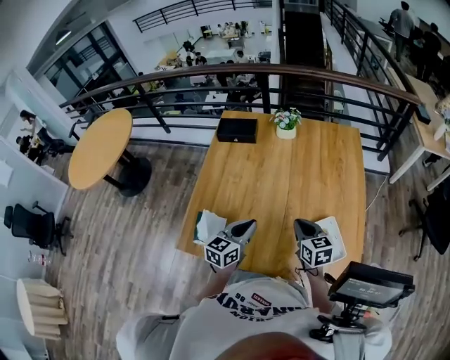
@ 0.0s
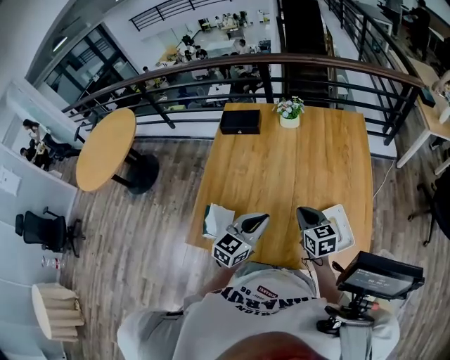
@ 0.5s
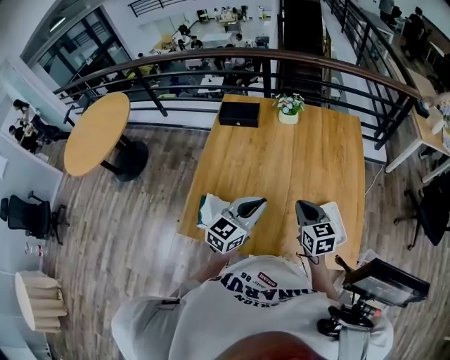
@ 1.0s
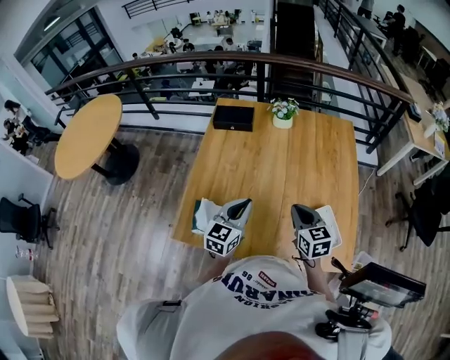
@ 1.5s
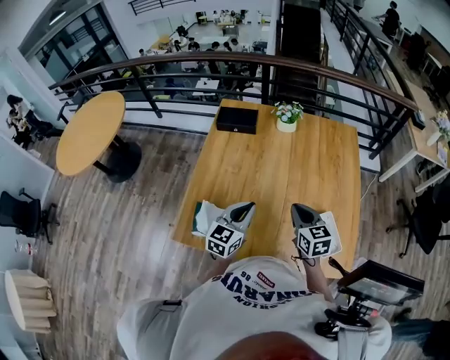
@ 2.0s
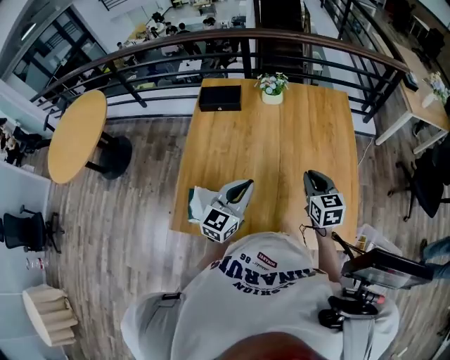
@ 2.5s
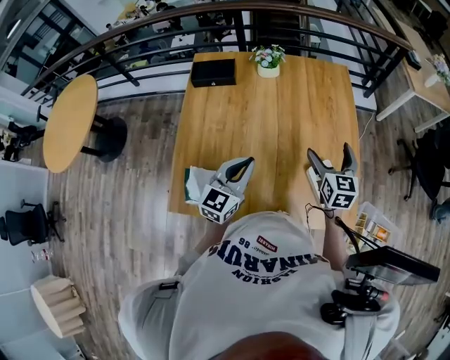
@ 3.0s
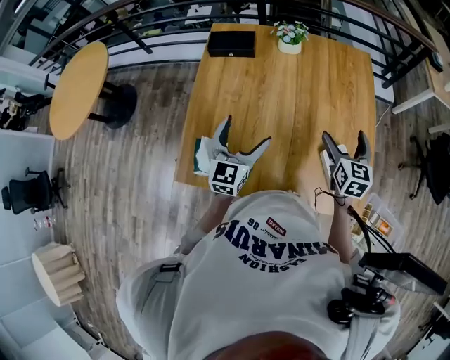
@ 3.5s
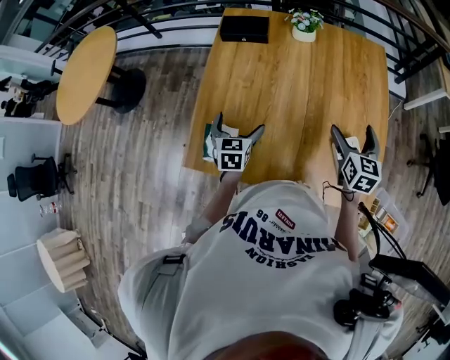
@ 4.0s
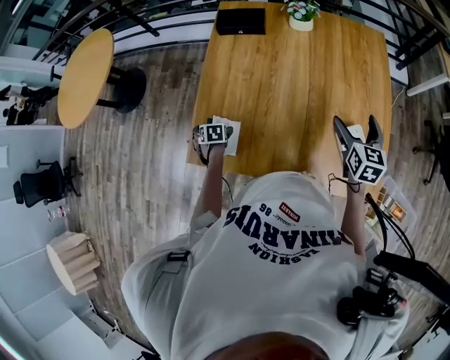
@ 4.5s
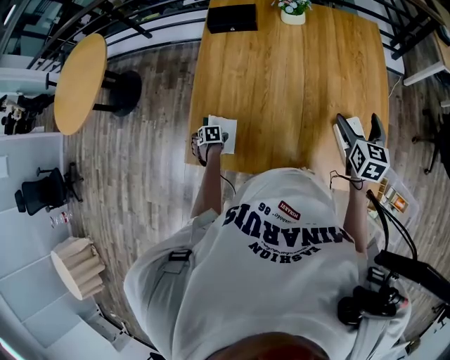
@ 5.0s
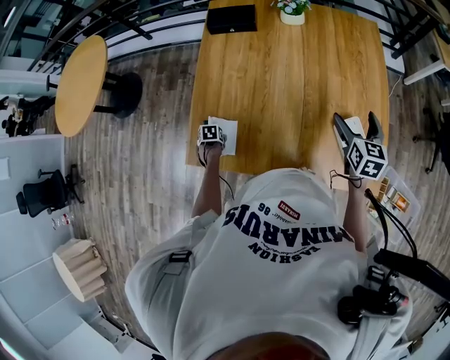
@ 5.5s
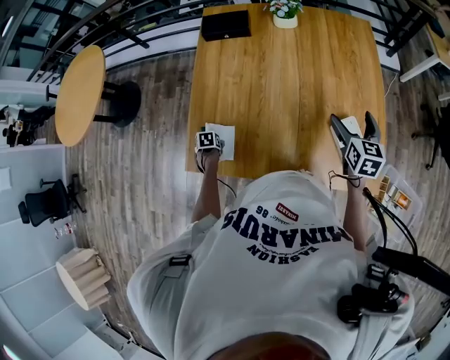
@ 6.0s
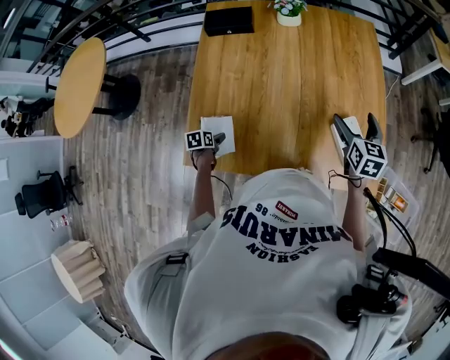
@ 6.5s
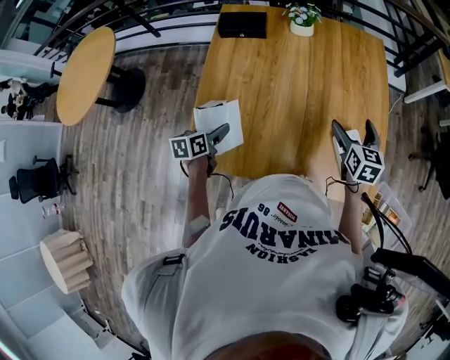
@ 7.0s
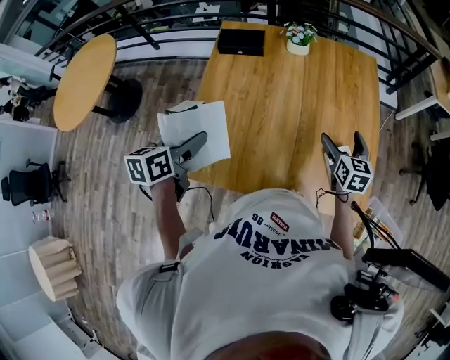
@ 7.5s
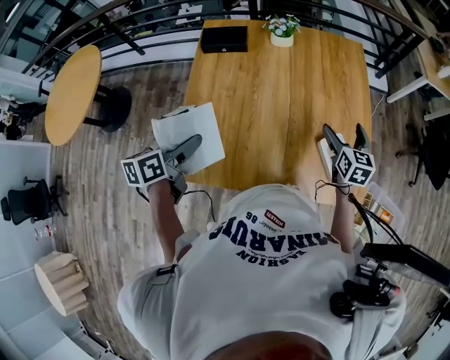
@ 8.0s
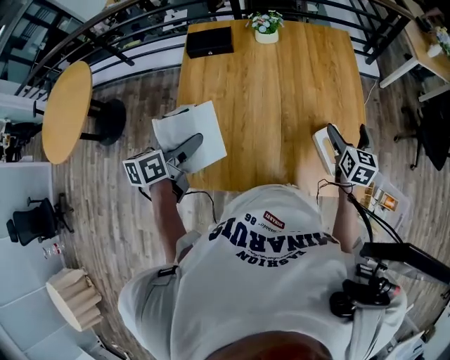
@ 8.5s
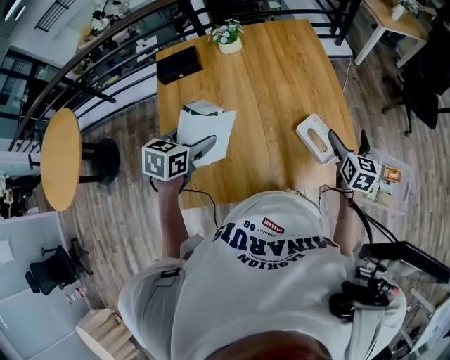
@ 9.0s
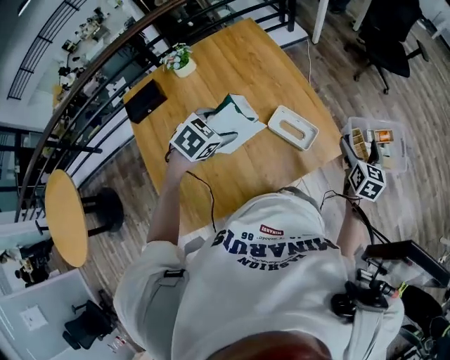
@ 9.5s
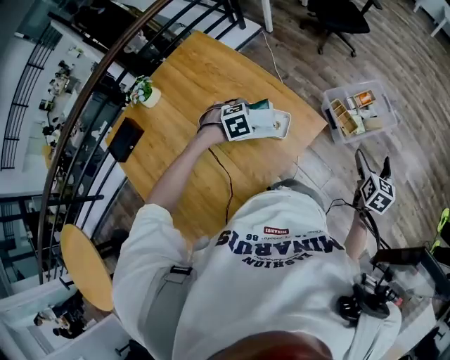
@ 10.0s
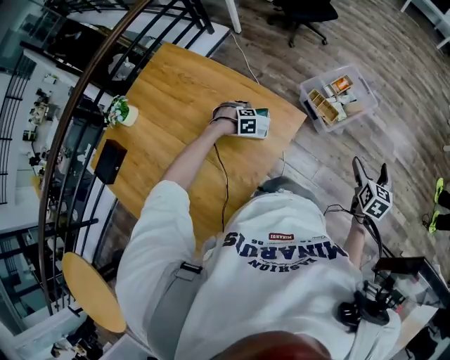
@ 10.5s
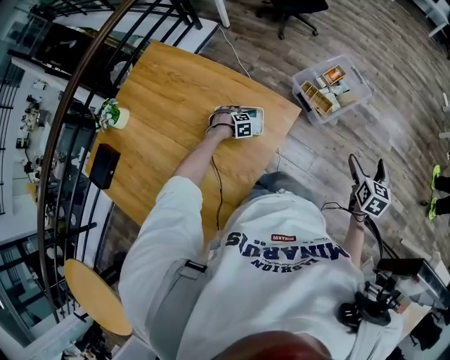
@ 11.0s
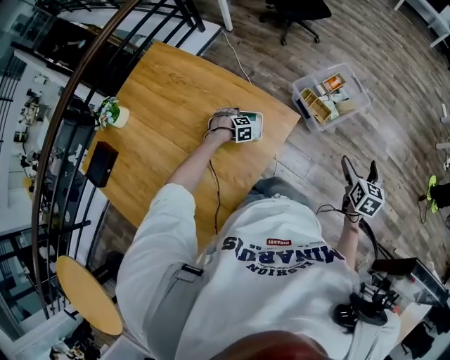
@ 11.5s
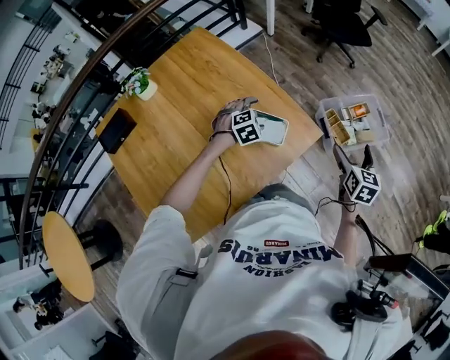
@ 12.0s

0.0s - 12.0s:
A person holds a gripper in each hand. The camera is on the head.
0.0s - 2.0s: The right gripper travels upward by approximately 5 cm.
2.0s - 4.0s: The left gripper shifts some 15 cm downward, to the left and forward, rotates some 30 degrees, and opens its fingers; the right gripper travels to the right and forward by some 15 cm, and opens its fingers.
4.0s - 6.0s: The left gripper heads downward, covering some 25 cm, tilts its fingers roughly 50 degrees downward, and closes.
6.0s - 8.0s: The left gripper goes some 40 cm upward, and points its fingers about 50 degrees further upward.
8.0s - 10.0s: The right gripper changes place by some 50 cm, and rotates approximately 70 degrees, while the left gripper ends up approximately 50 cm from where it was, and rotates around the line of its fingers by about 120 degrees, clockwise from behind.
10.0s - 12.0s: The left gripper goes downward and returns, roughly 25 cm each way; the right gripper shifts by some 10 cm.

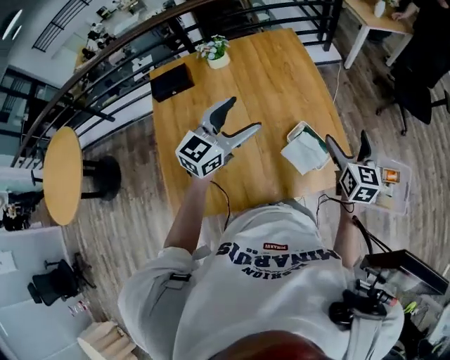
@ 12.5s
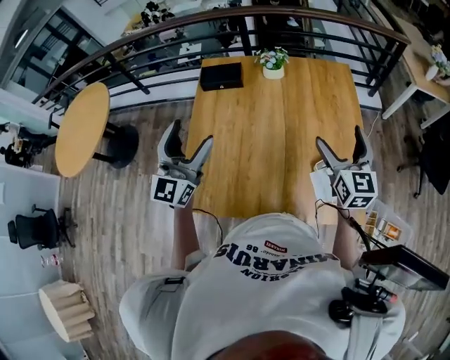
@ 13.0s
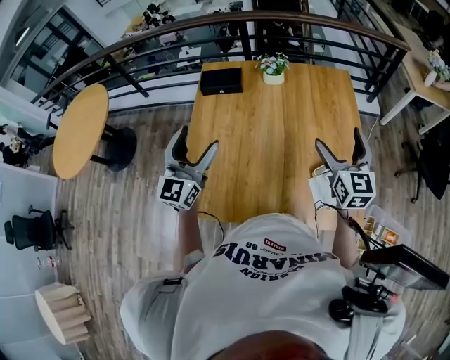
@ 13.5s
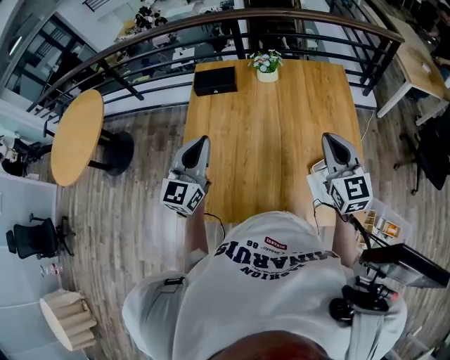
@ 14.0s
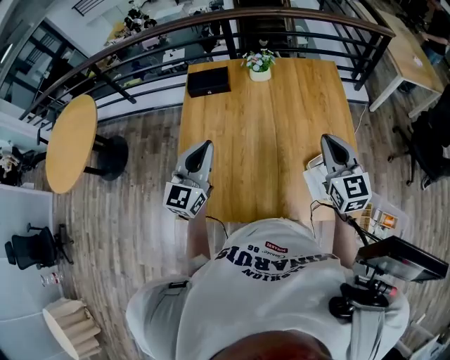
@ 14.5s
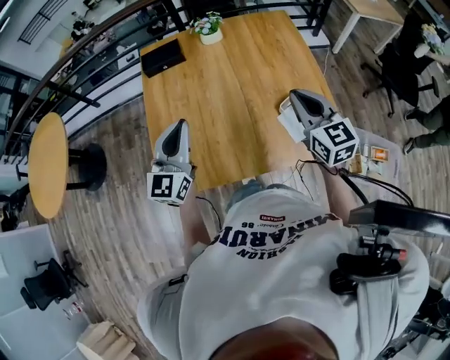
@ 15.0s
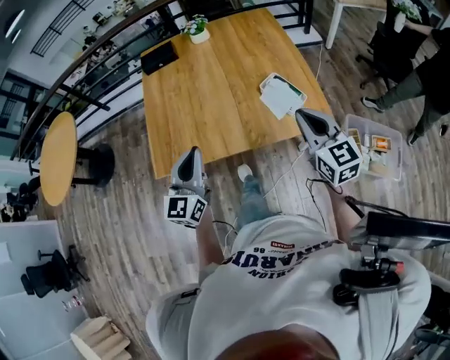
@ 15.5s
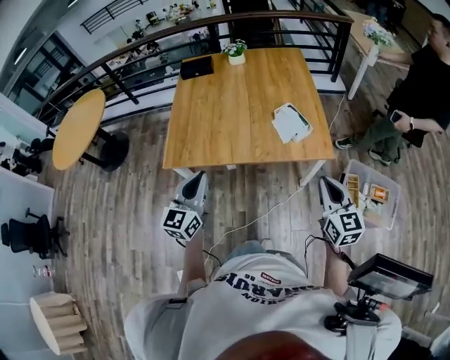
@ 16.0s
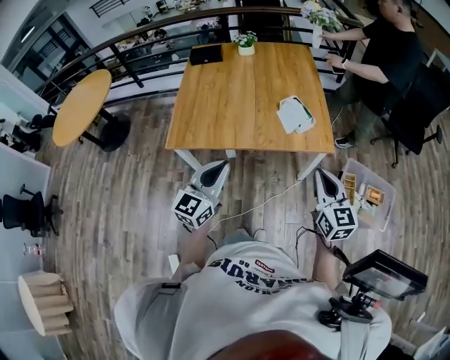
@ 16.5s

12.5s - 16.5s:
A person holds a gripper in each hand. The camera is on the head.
12.5s - 14.5s: The left gripper moves approximately 25 cm, swivels about 30 degrees, and closes. Meanwhile the right gripper changes place by some 25 cm, changes its angle by roughly 30 degrees, and closes up.
14.5s - 16.5s: The two grippers travel together, backward and to the right, approximately 50 cm.

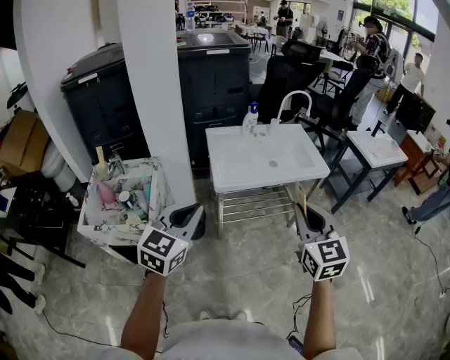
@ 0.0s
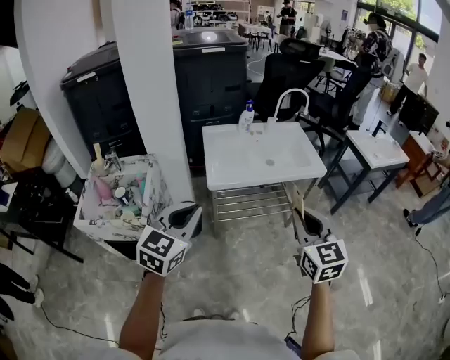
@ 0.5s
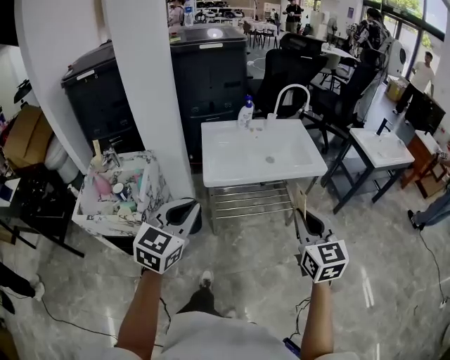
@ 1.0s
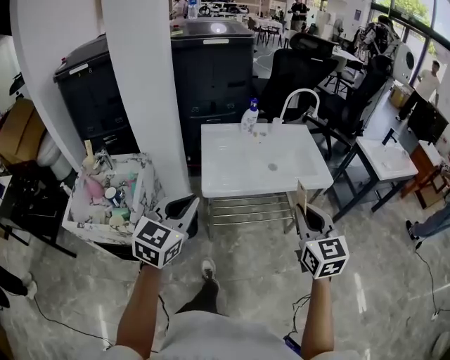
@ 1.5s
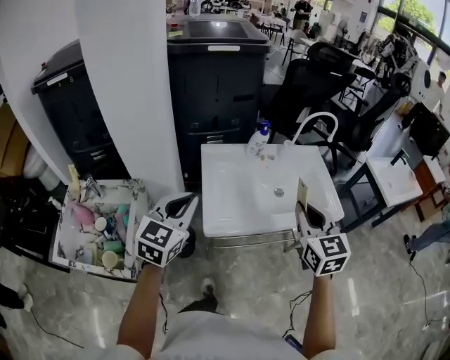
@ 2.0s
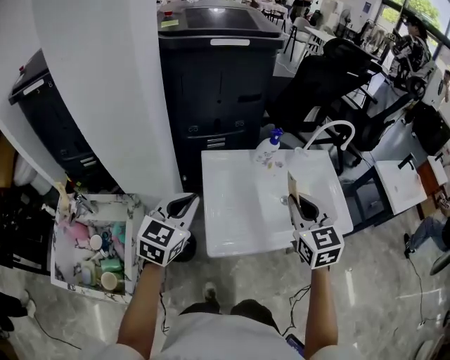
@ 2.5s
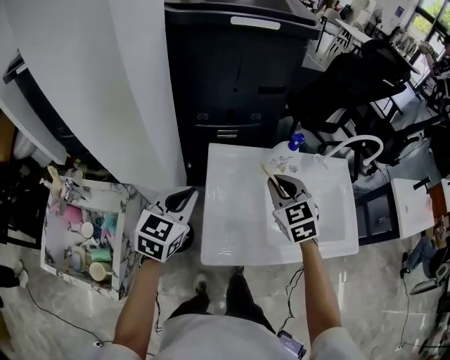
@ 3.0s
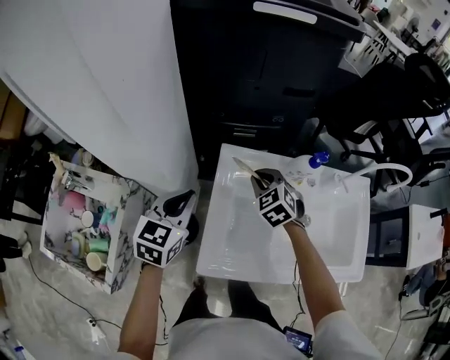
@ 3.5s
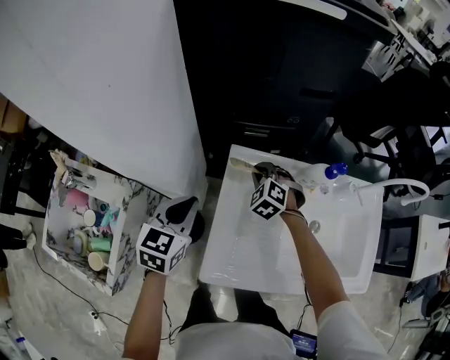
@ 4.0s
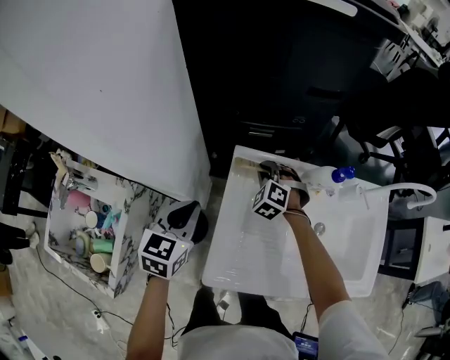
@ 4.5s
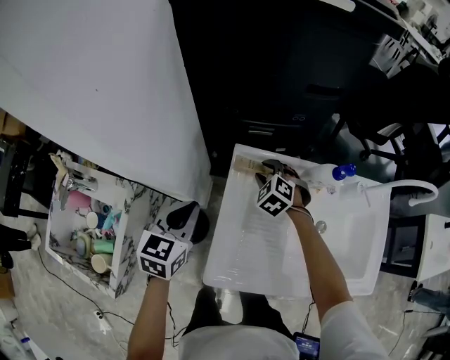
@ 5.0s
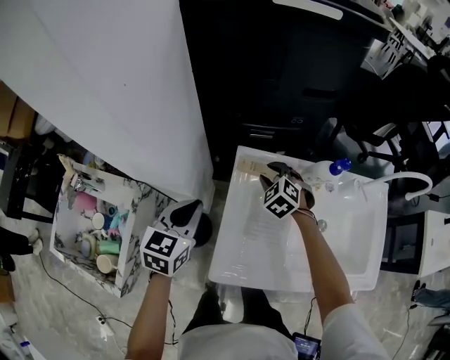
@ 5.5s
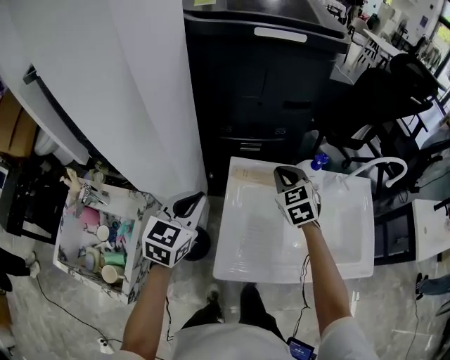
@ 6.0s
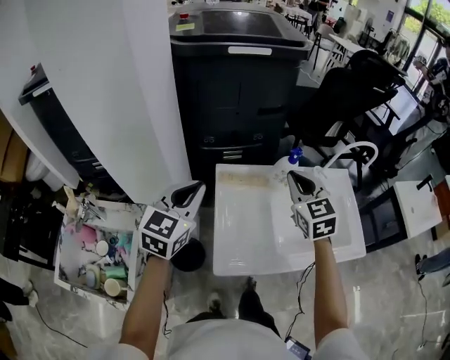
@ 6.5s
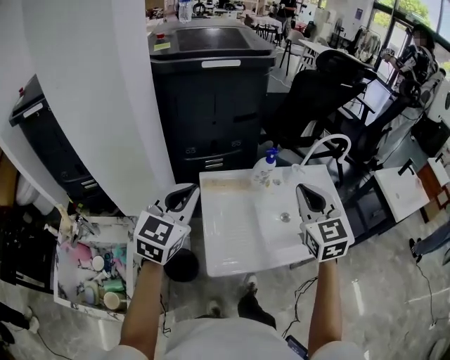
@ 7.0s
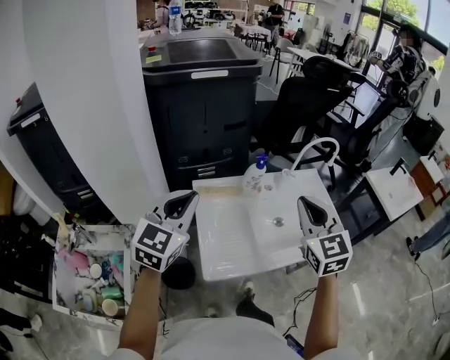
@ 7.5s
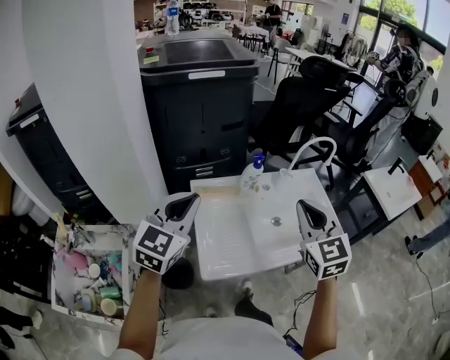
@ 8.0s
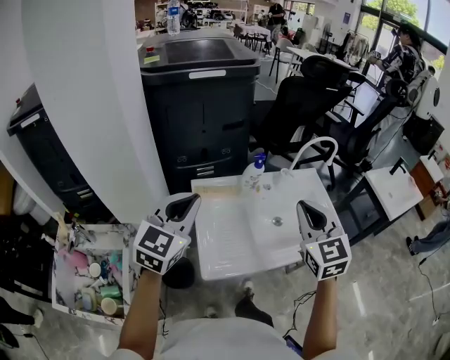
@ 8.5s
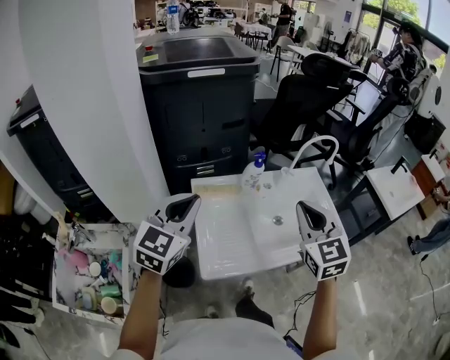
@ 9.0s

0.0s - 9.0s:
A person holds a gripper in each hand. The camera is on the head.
0.0s - 2.0s: The two grippers go approximately 30 cm forward.
2.0s - 4.5s: The right gripper travels forward, downward and to the left by some 60 cm, and rotates around the line of its fingers by roughly 60 degrees, counterclockwise from behind; the left gripper travels forward and downward by roughly 30 cm, and turns by some 30 degrees.
4.5s - 7.0s: The right gripper moves upward, backward and to the right, some 50 cm, points its fingers some 40 degrees further upward, and opens, then closes once more. The left gripper heads upward, covering roughly 20 cm, and swivels some 40 degrees.
7.0s - 9.0s: The right gripper shifts roughly 5 cm backward.

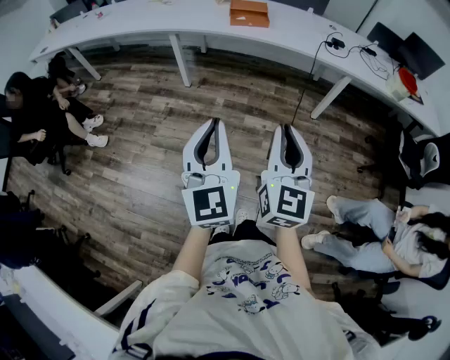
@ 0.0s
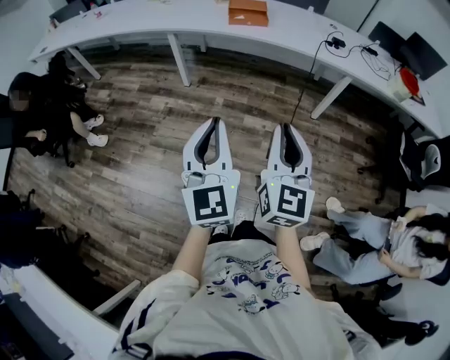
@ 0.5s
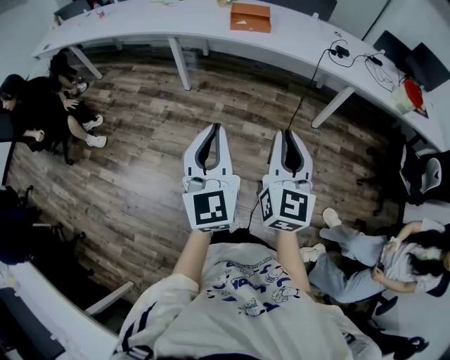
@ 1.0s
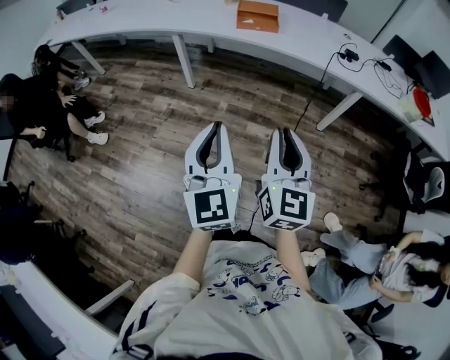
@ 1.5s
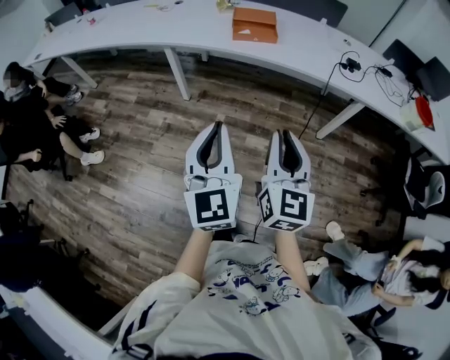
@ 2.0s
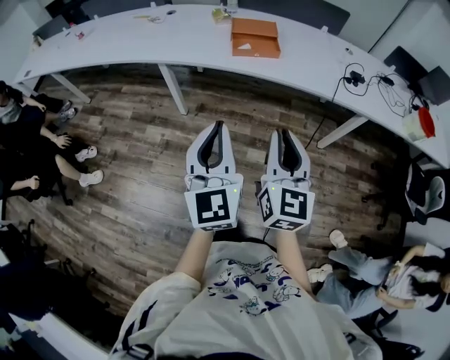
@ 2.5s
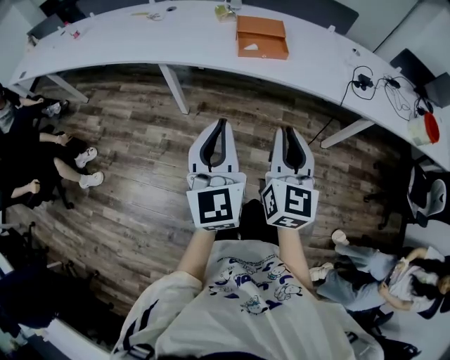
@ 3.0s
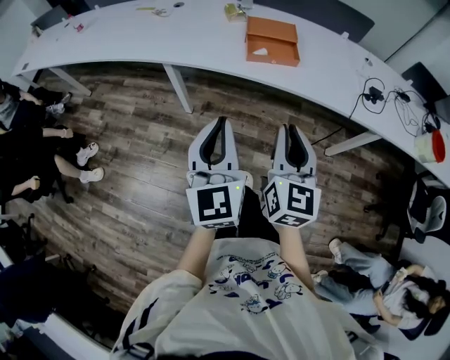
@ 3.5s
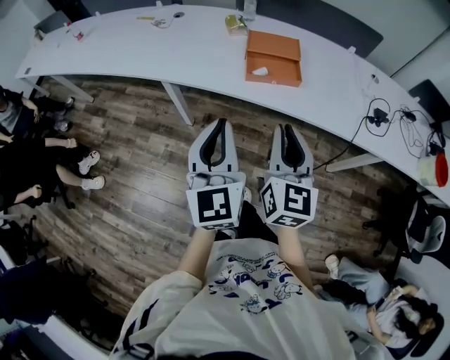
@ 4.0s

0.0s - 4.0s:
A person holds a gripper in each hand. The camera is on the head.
0.0s - 2.0s: The two grippers go some 20 cm forward.
2.0s - 4.0s: Both grippers travel together forward, some 35 cm.
